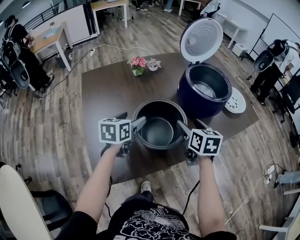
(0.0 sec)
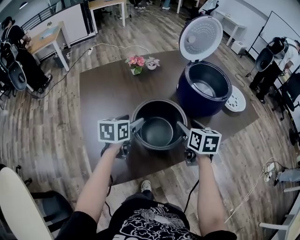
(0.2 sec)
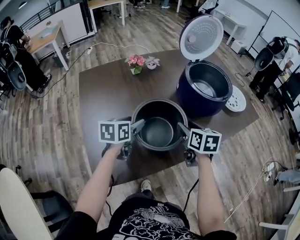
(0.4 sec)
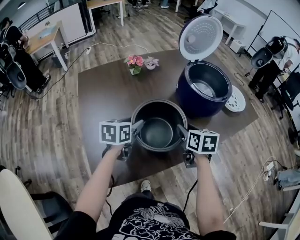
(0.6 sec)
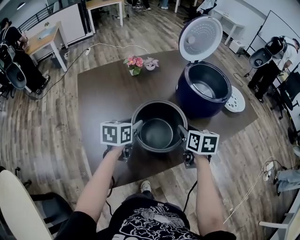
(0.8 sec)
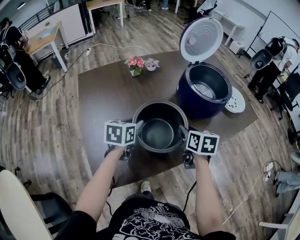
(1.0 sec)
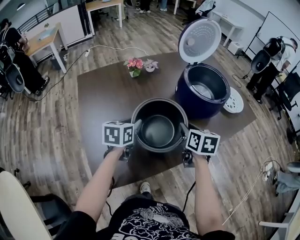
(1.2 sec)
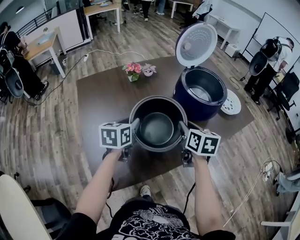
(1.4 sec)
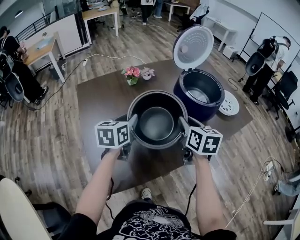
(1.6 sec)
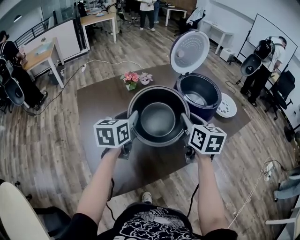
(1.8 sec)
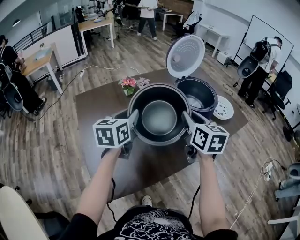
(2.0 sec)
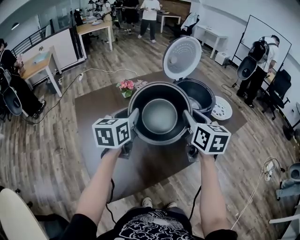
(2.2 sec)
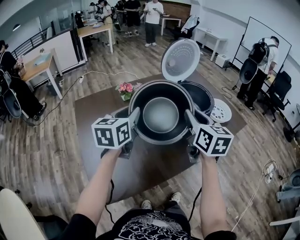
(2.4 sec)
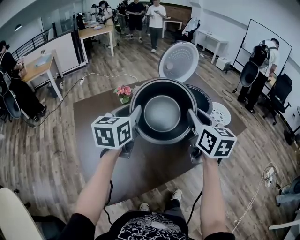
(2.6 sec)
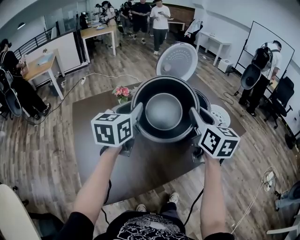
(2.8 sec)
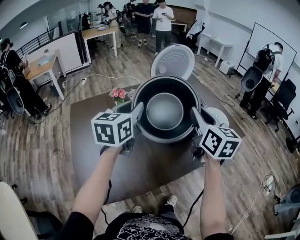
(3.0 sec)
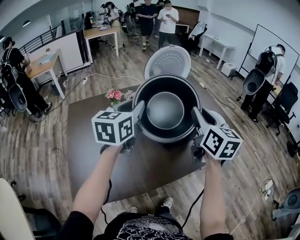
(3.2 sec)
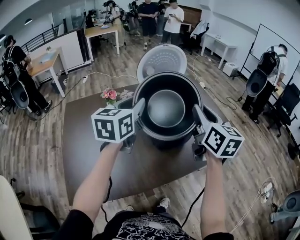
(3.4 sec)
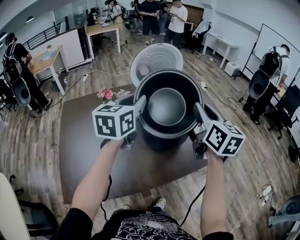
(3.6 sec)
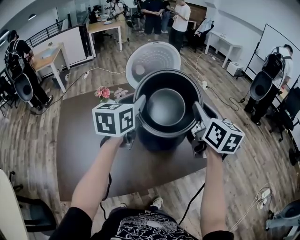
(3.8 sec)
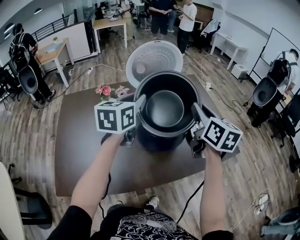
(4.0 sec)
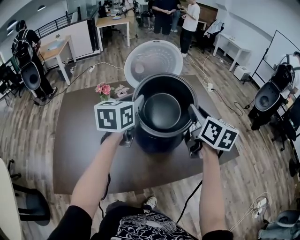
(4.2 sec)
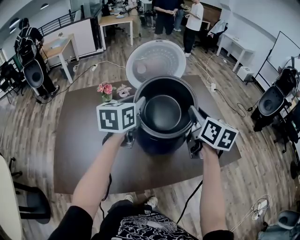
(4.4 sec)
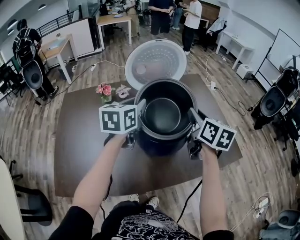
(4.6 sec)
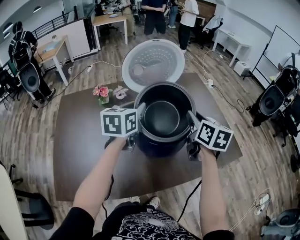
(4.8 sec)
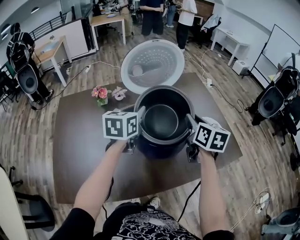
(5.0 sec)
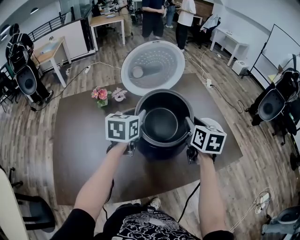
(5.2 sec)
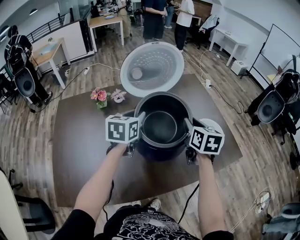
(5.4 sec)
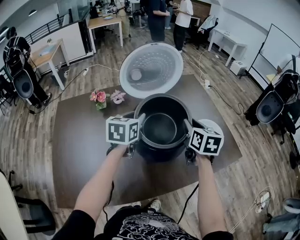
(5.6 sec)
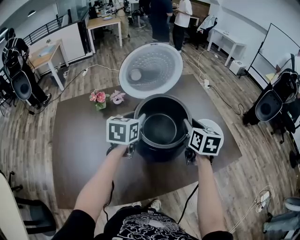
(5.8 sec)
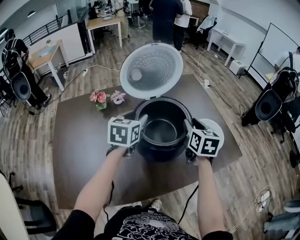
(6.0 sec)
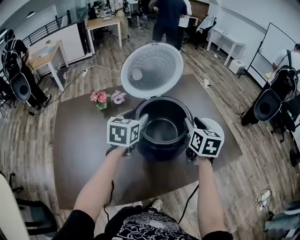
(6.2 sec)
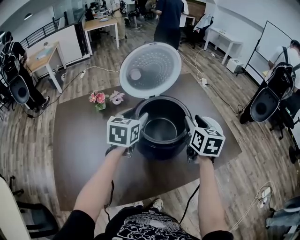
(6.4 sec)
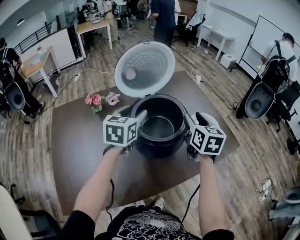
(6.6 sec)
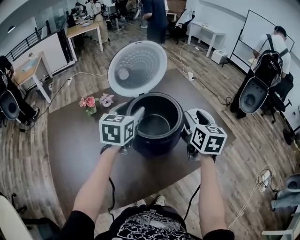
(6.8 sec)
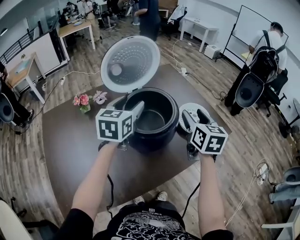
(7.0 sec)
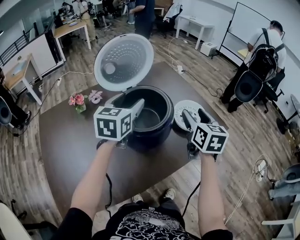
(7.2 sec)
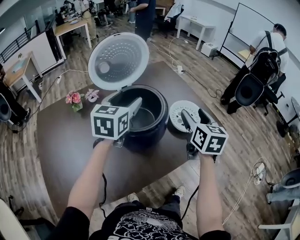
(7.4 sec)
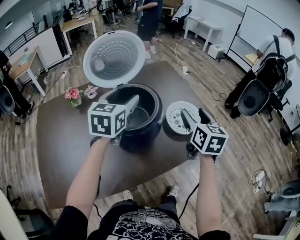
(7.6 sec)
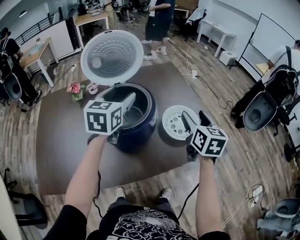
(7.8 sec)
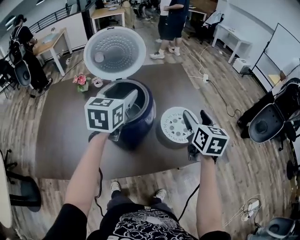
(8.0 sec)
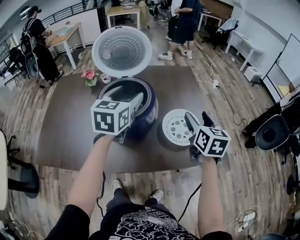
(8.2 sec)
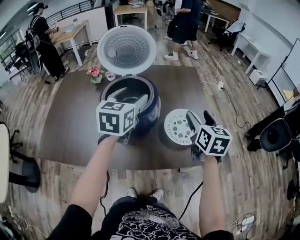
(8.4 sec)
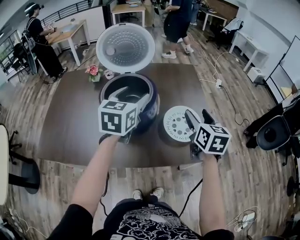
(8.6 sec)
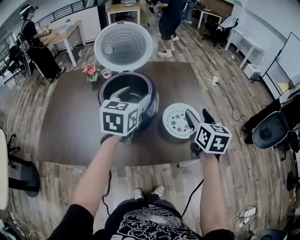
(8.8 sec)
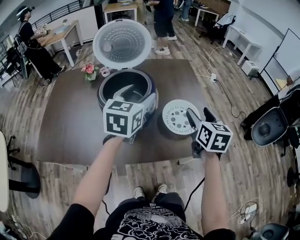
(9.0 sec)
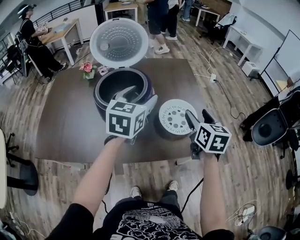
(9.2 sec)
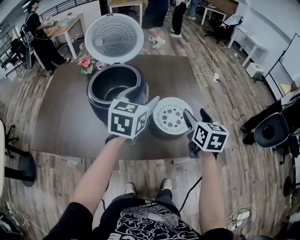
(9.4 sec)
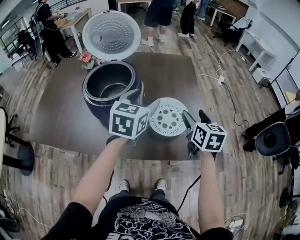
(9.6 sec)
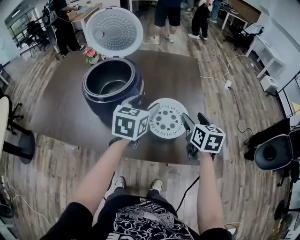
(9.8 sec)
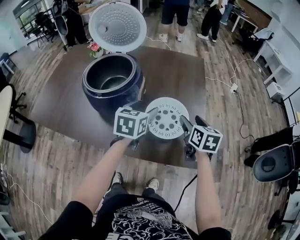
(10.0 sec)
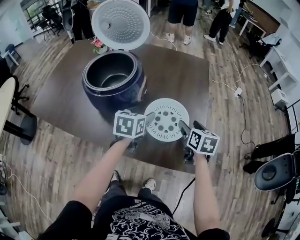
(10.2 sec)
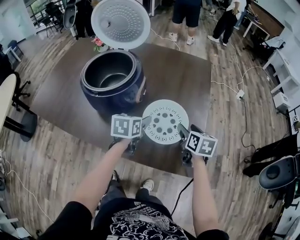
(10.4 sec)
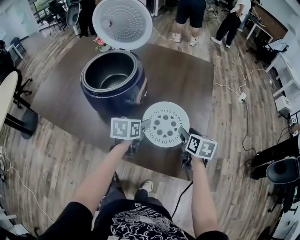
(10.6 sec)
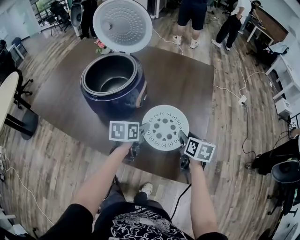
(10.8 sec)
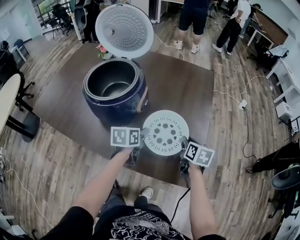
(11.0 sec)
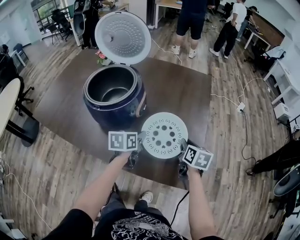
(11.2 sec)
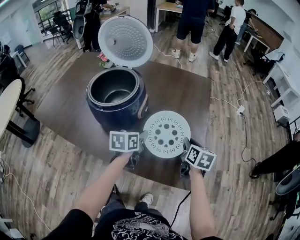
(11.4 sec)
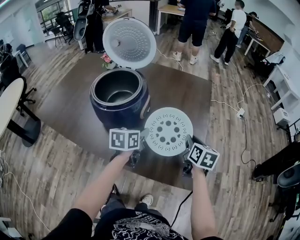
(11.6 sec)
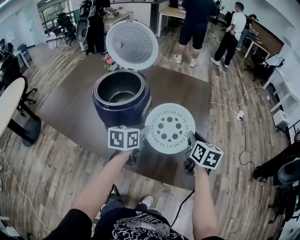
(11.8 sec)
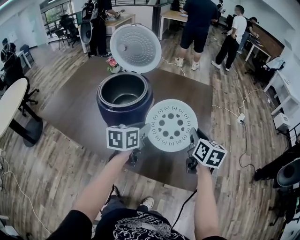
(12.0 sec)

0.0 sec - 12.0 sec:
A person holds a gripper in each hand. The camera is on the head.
0.0 sec - 1.6 sec: The grippers both shift upward by roughly 5 cm. The left gripper closes; the right gripper closes its fingers.
1.6 sec - 3.0 sec: The right gripper goes about 20 cm upward and to the right, and swivels some 20 degrees; the left gripper is displaced upward, to the right and forward by roughly 20 cm.
3.0 sec - 4.4 sec: The left gripper shifts about 15 cm to the right and forward. The right gripper is displaced forward and to the right by about 20 cm.
4.4 sec - 6.0 sec: The grippers both shift downward by about 10 cm.
6.0 sec - 7.6 sec: The right gripper moves to the right, about 15 cm, and opens its fingers; the left gripper heads to the right and upward, covering about 10 cm.
7.6 sec - 9.0 sec: The right gripper moves to the right, approximately 5 cm; the left gripper shifts approximately 10 cm to the right and backward.
9.0 sec - 10.4 sec: The right gripper travels downward, forward and to the right by some 20 cm, and changes its angle by roughly 30 degrees. The left gripper shifts about 25 cm downward, and swivels some 40 degrees.
10.4 sec - 12.0 sec: The grippers both shift upward by some 10 cm. The left gripper closes up. The right gripper closes up.

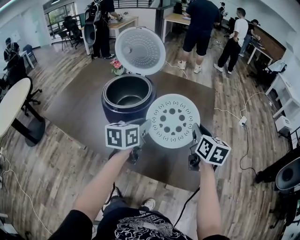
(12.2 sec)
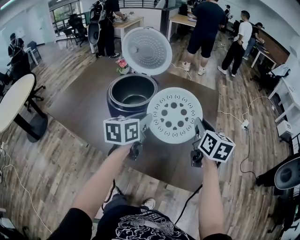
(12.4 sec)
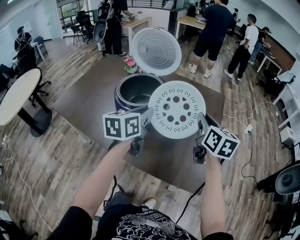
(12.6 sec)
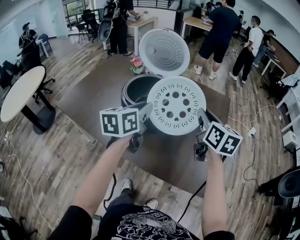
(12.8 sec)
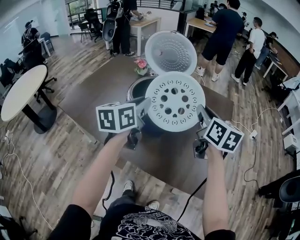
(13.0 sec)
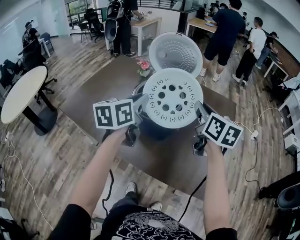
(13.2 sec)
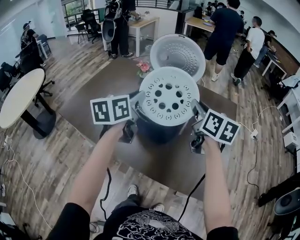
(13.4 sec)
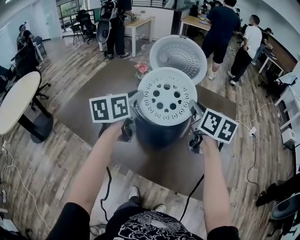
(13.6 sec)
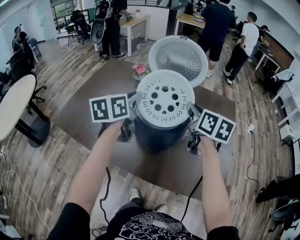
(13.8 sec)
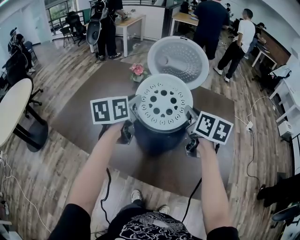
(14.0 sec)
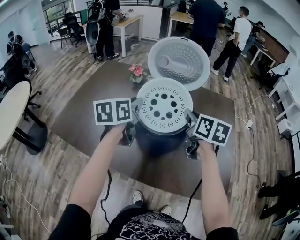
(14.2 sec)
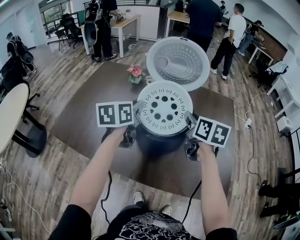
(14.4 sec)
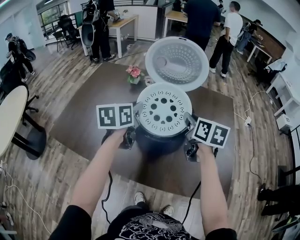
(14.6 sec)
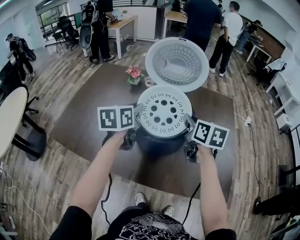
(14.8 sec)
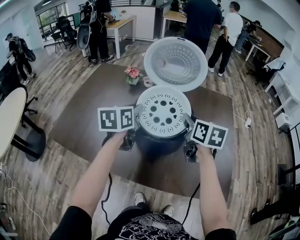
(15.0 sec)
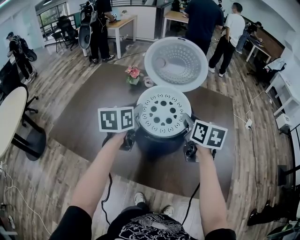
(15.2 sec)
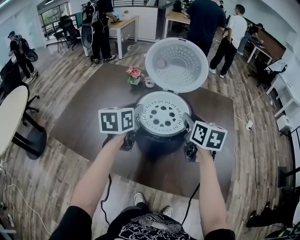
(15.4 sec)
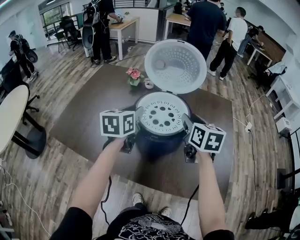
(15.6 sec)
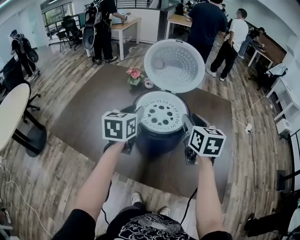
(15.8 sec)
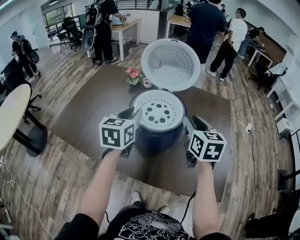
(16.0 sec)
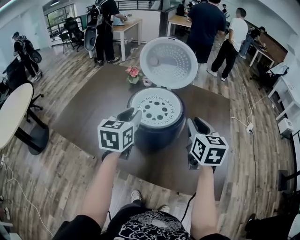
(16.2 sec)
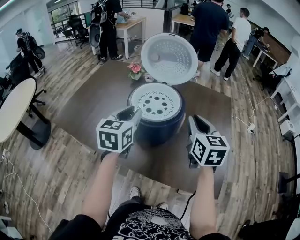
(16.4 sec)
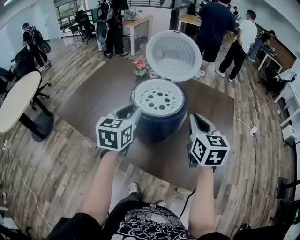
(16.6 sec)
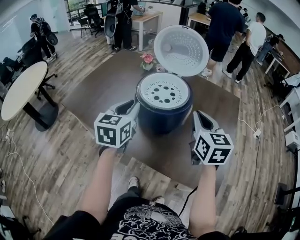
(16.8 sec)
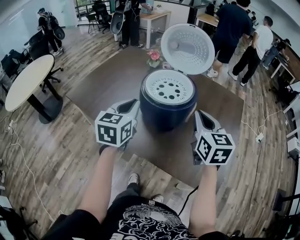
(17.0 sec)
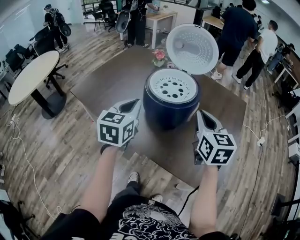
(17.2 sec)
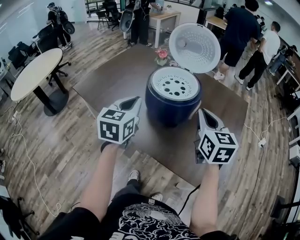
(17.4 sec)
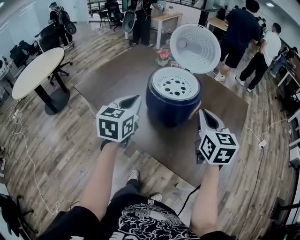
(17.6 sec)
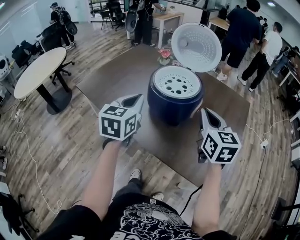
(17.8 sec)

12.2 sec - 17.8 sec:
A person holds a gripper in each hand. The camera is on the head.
12.2 sec - 13.6 sec: The left gripper shifts about 25 cm to the left, upward and forward. Meanwhile the right gripper is displaced to the left and forward by roughly 25 cm.
13.6 sec - 15.0 sec: The left gripper goes about 10 cm downward and forward. The right gripper is displaced downward by about 5 cm.
15.0 sec - 16.4 sec: The left gripper heads backward, covering about 10 cm, while the right gripper goes roughly 10 cm backward and to the right, and swivels about 20 degrees.
16.4 sec - 17.8 sec: The right gripper shifts by about 5 cm. Meanwhile the left gripper is displaced backward by about 10 cm.

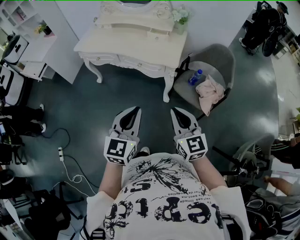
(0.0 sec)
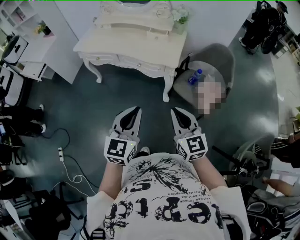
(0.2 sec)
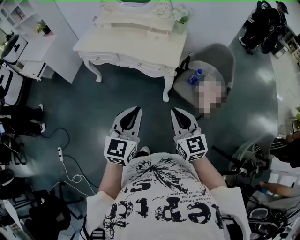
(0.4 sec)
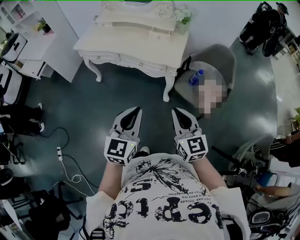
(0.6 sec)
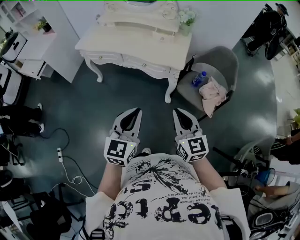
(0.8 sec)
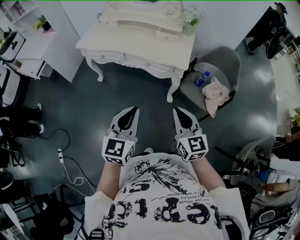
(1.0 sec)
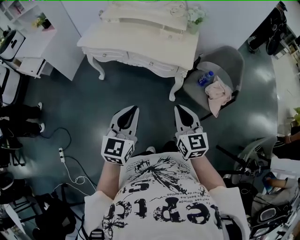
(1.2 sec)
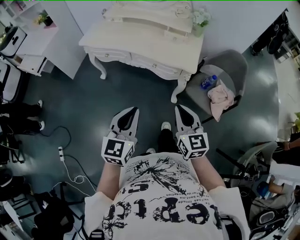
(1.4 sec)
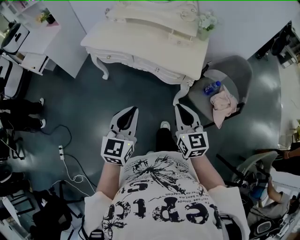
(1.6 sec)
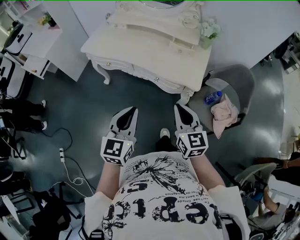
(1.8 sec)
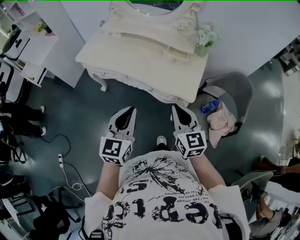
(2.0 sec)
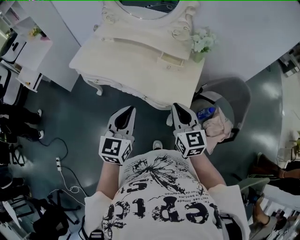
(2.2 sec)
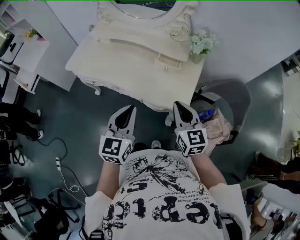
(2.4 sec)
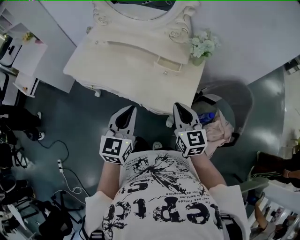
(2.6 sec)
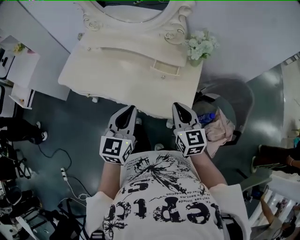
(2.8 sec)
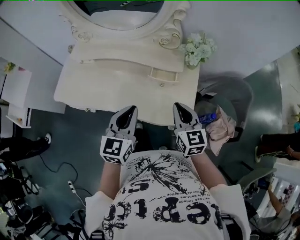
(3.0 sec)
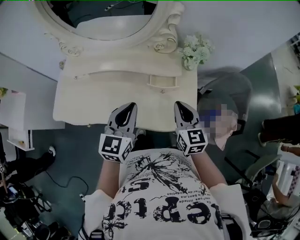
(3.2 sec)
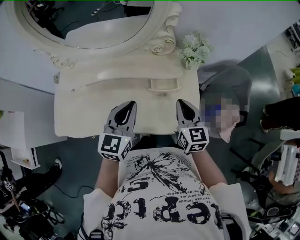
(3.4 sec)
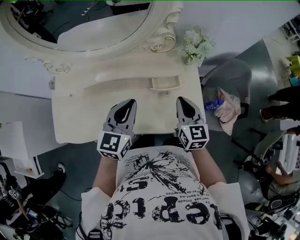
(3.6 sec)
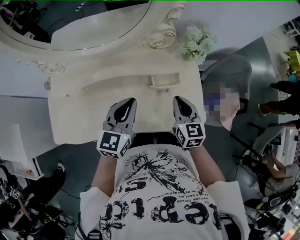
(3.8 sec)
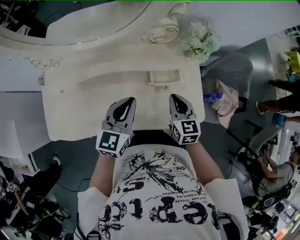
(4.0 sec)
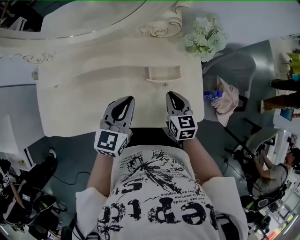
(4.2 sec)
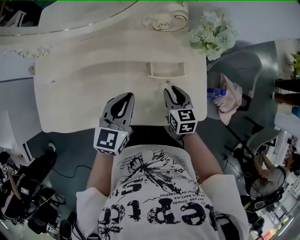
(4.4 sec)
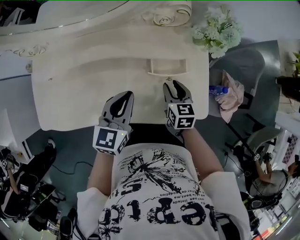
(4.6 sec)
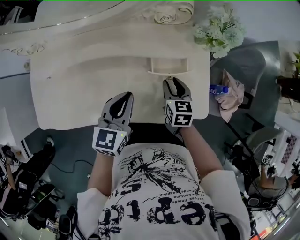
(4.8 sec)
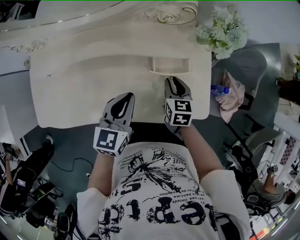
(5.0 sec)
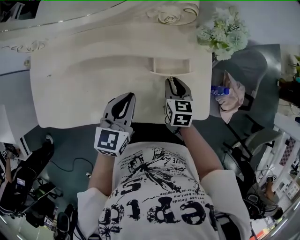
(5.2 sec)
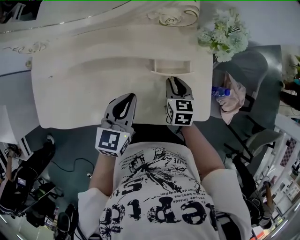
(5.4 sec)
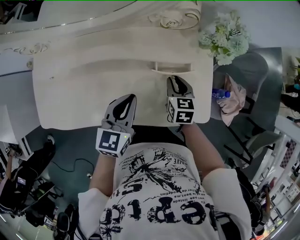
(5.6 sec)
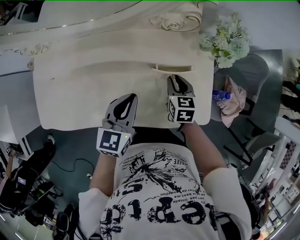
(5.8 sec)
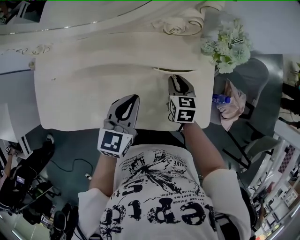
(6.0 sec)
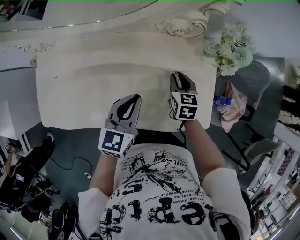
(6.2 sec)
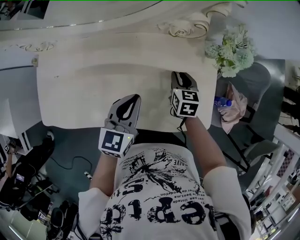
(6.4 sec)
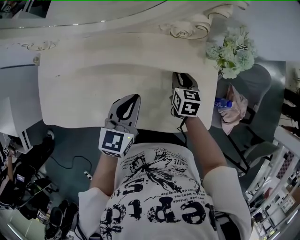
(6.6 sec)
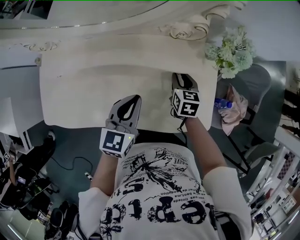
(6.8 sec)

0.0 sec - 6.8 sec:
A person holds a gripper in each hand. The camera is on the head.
0.0 sec - 1.4 sec: Both grippers travel together to the left and forward, about 15 cm.
1.4 sec - 2.8 sec: Both grippers travel together forward, some 40 cm.
2.8 sec - 4.0 sec: The left gripper changes place by some 25 cm, and turns by some 30 degrees. The right gripper changes place by about 20 cm, and changes its angle by about 30 degrees.
4.0 sec - 5.4 sec: The two grippers go approximately 10 cm downward. The right gripper opens its fingers.
5.4 sec - 6.8 sec: The right gripper shifts approximately 5 cm forward.
